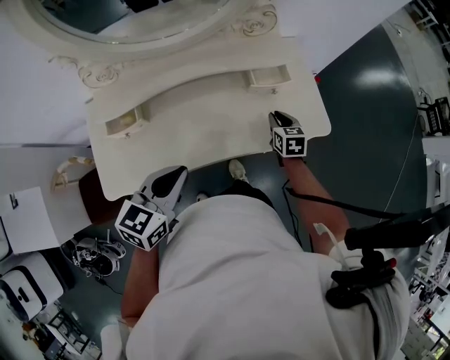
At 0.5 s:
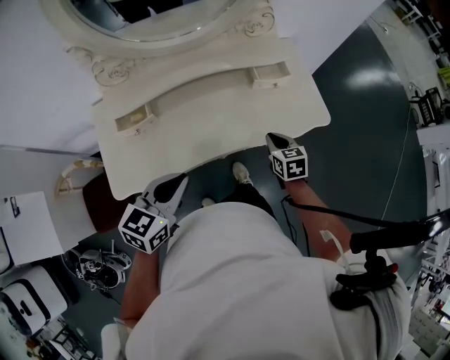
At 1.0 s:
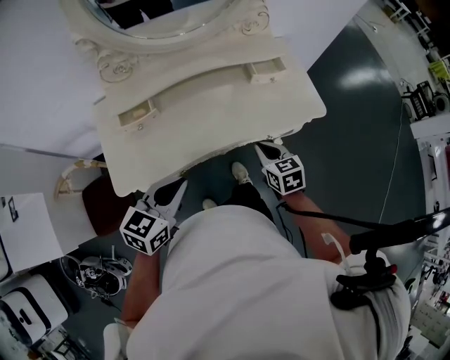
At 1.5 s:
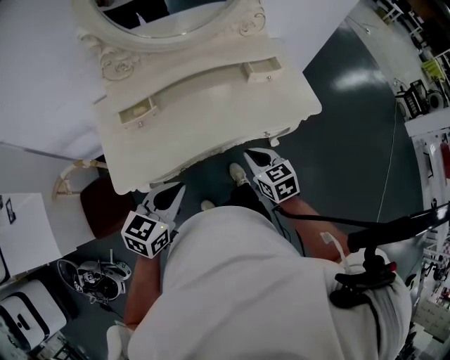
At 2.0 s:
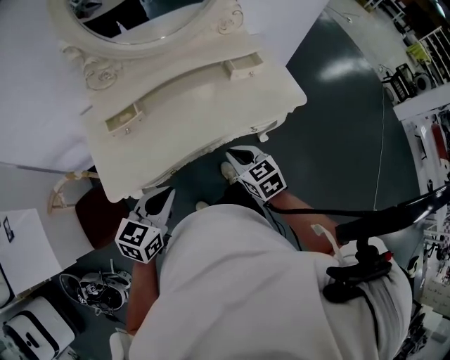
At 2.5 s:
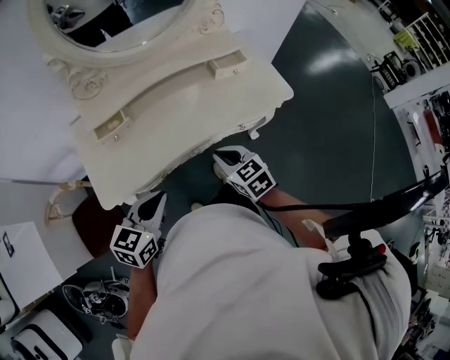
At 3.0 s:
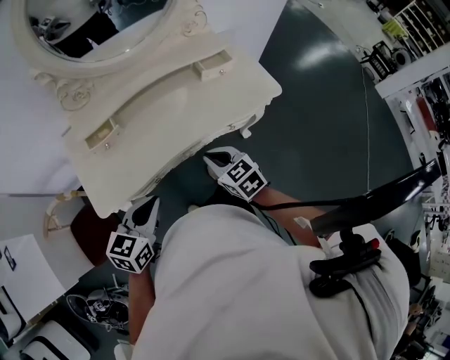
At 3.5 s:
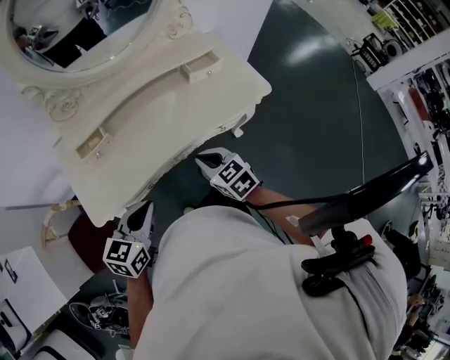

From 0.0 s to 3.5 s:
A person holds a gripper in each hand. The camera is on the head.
From 0.0 s to 2.0 s: The right gripper moves backward and to the left, roughly 30 cm. The left gripper heads backward and to the left, covering about 20 cm.
From 2.0 s to 3.5 s: The grippers move only a little.

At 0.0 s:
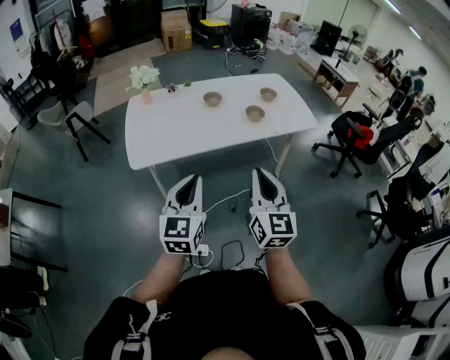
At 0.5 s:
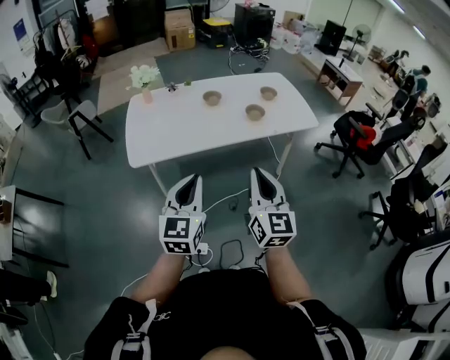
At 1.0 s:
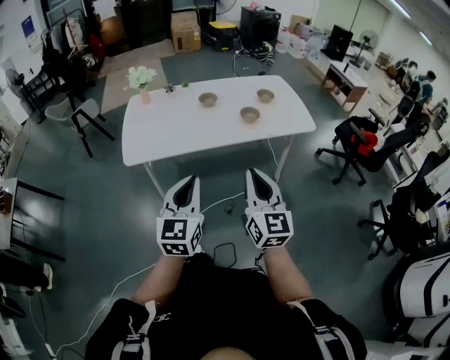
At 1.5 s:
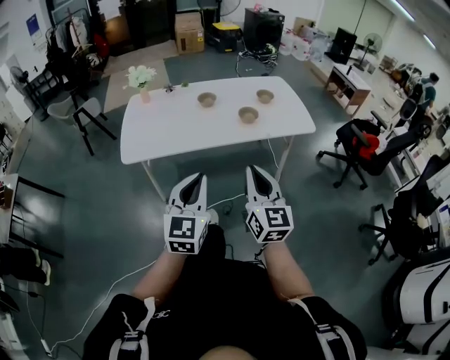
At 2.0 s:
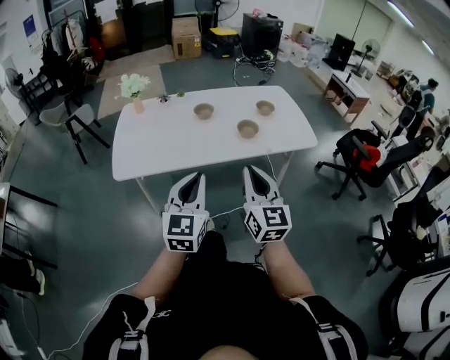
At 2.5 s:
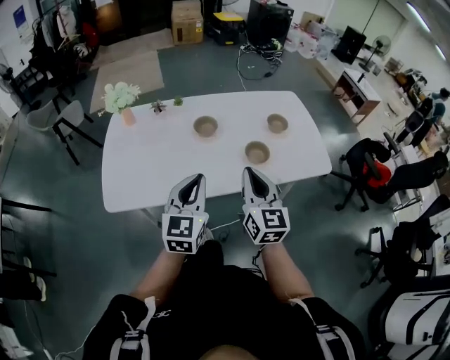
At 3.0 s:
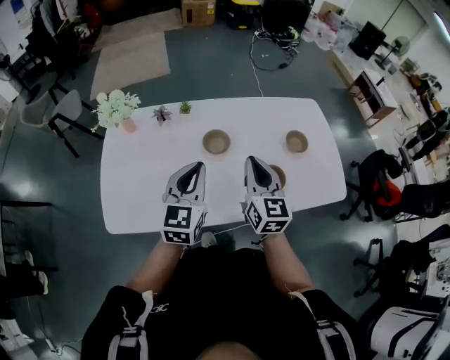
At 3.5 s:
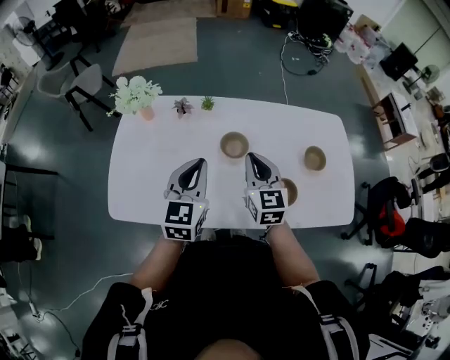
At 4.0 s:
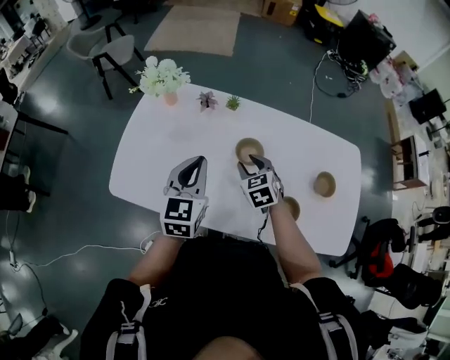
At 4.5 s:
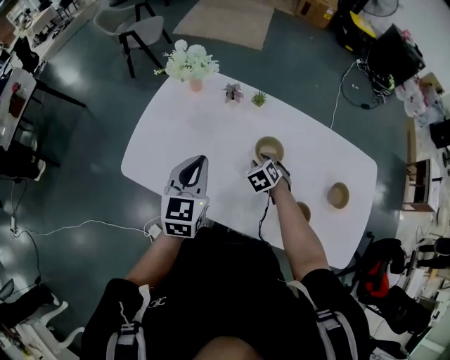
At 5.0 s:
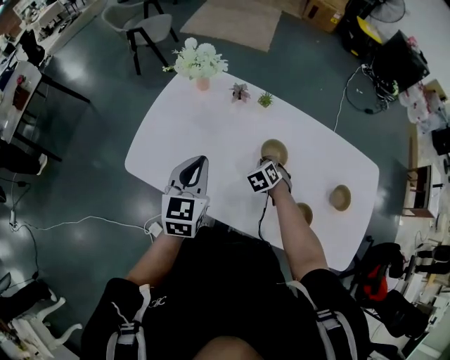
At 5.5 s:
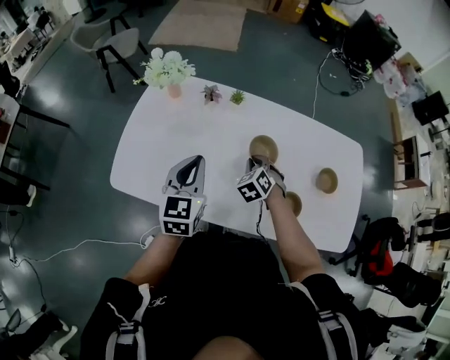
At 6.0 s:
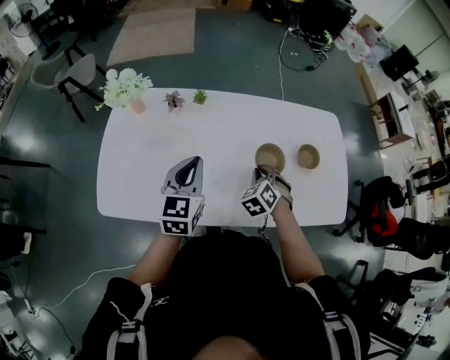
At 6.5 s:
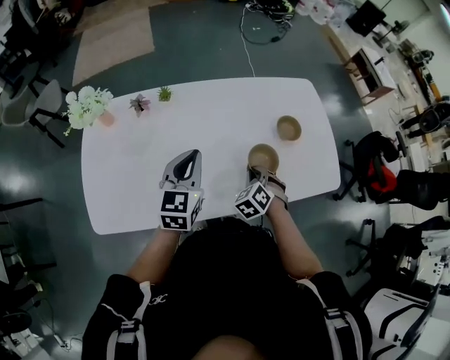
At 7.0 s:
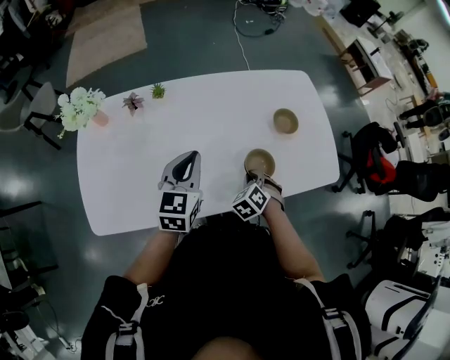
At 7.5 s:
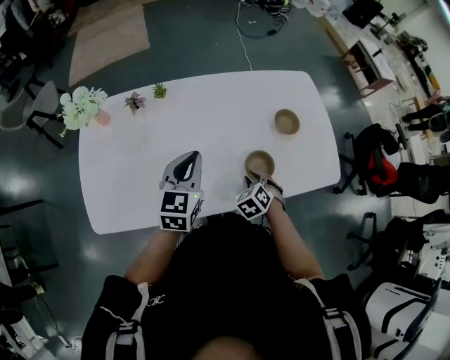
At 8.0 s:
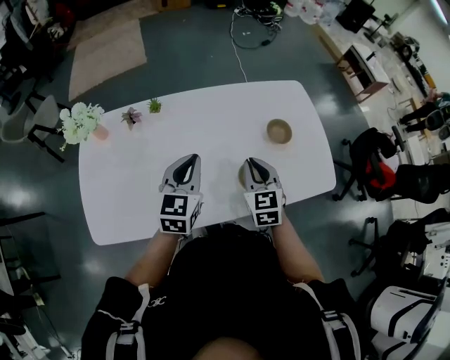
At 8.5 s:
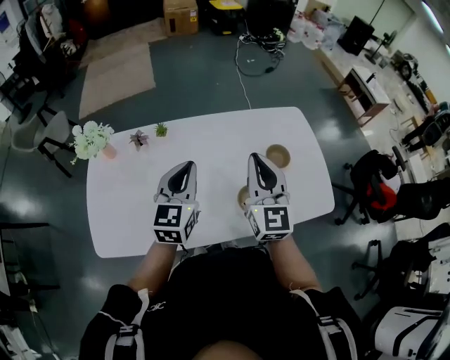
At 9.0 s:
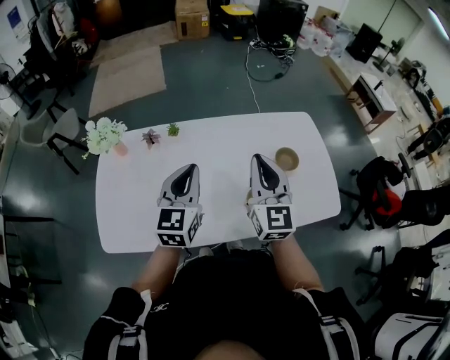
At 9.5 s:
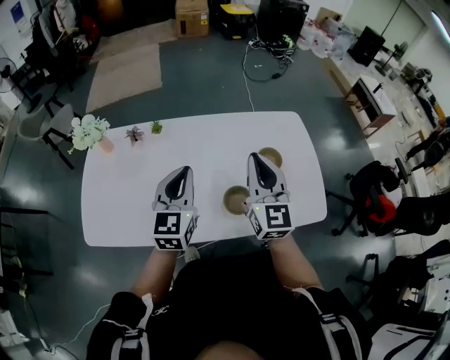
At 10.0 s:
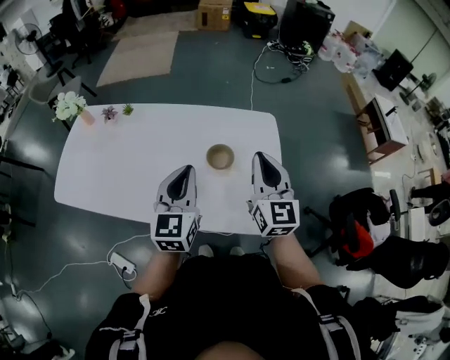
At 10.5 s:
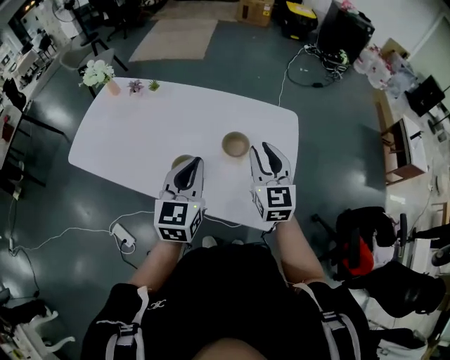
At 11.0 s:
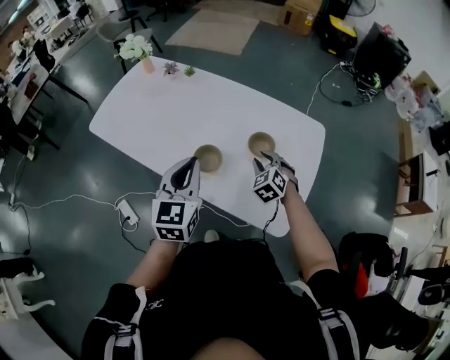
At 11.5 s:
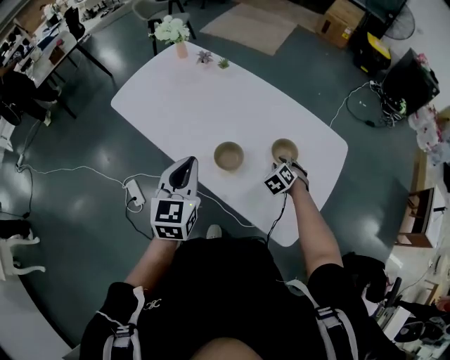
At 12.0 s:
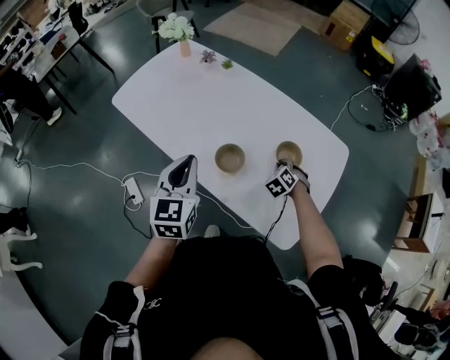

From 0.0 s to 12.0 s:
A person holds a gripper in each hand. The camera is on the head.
From 0.0 s to 2.0 s: The right gripper heads forward and to the right, covering about 15 cm. Meanwhile the left gripper moves to the right and forward, approximately 20 cm.
From 2.0 s to 4.0 s: Both grippers are carried about 60 cm. The right gripper points its fingers roughly 50 degrees further downward, and opens up. Meanwhile the left gripper changes its angle by some 30 degrees.
From 4.0 s to 6.0 s: The right gripper goes downward and returns, about 10 cm each way, rotates roughly 30 degrees, and closes its fingers, while the left gripper moves roughly 5 cm.
From 6.0 s to 8.0 s: The left gripper moves to the right and forward, about 10 cm. Meanwhile the right gripper travels upward and to the right by some 10 cm, and changes its angle by approximately 40 degrees.
From 8.0 s to 10.0 s: The grippers both shift to the right by about 40 cm. The left gripper changes its angle by approximately 30 degrees. Meanwhile the right gripper swivels roughly 30 degrees.
From 10.0 s to 12.0 s: The right gripper heads downward, covering some 30 cm, points its fingers approximately 50 degrees further downward, and opens, then closes again. Meanwhile the left gripper heads to the left and backward, covering some 20 cm, and swivels some 30 degrees.

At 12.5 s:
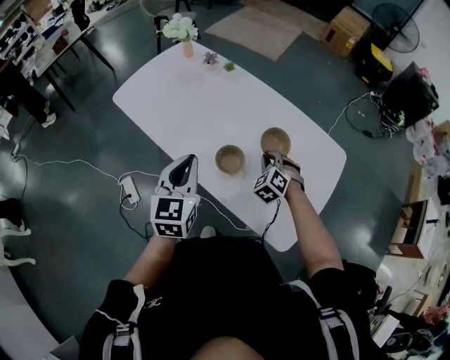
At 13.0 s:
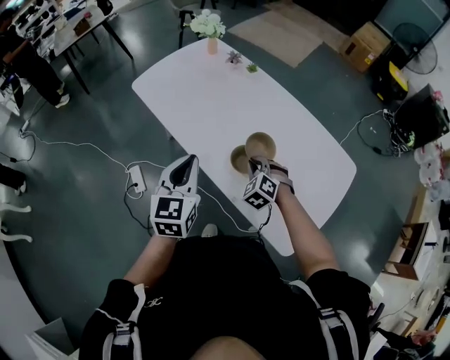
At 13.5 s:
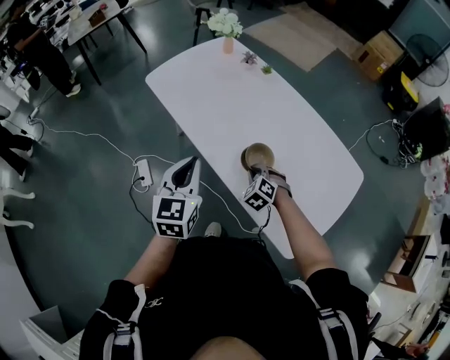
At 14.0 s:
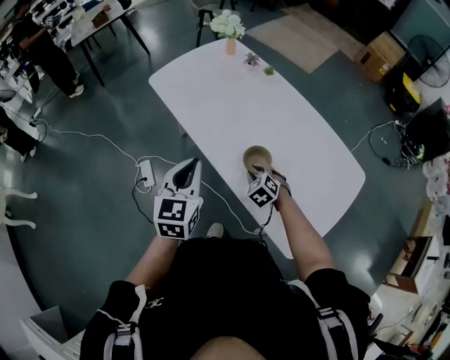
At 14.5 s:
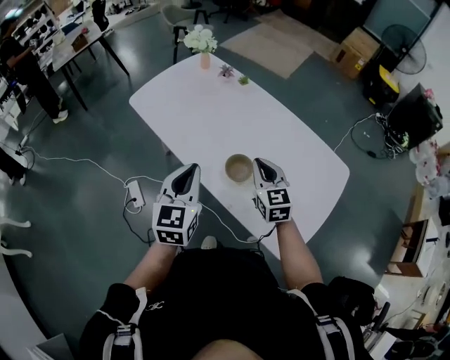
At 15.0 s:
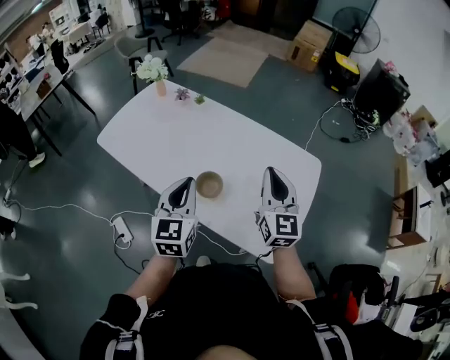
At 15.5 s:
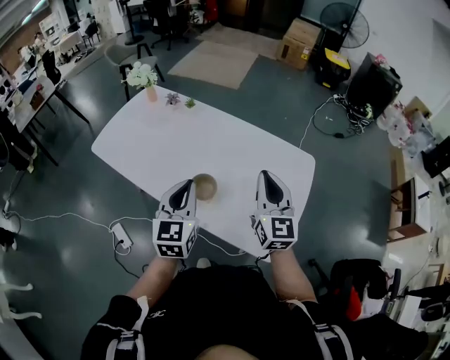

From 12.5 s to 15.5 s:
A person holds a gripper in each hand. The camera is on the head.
From 12.5 s to 14.0 s: The left gripper heads to the left, covering roughly 10 cm. The right gripper travels to the left and downward by approximately 15 cm, and turns by approximately 20 degrees.
From 14.0 s to 15.5 s: The left gripper shifts approximately 15 cm to the right, and swivels approximately 20 degrees. The right gripper goes some 35 cm upward and to the right, angles its fingers upward, by roughly 60 degrees, and closes up.

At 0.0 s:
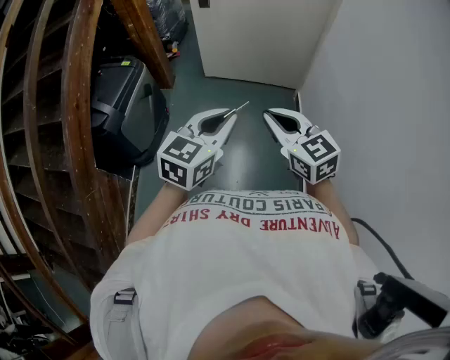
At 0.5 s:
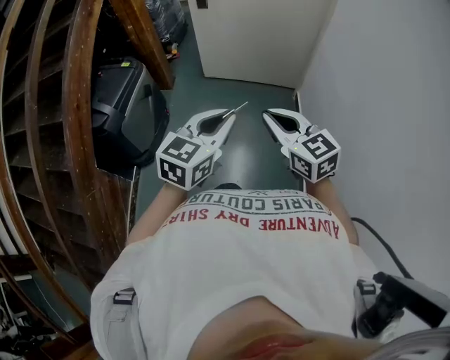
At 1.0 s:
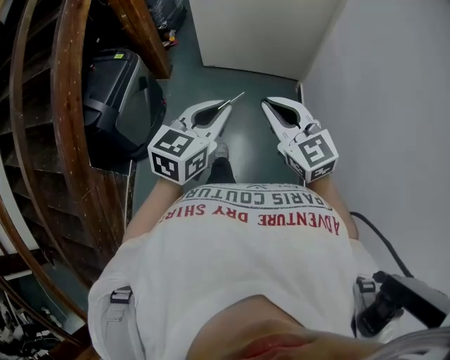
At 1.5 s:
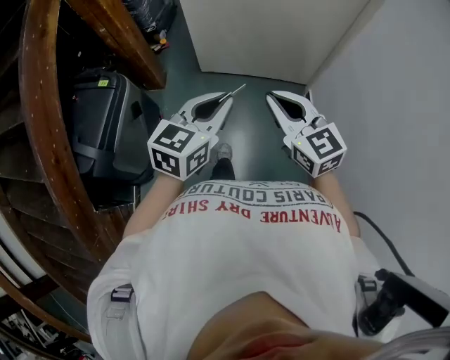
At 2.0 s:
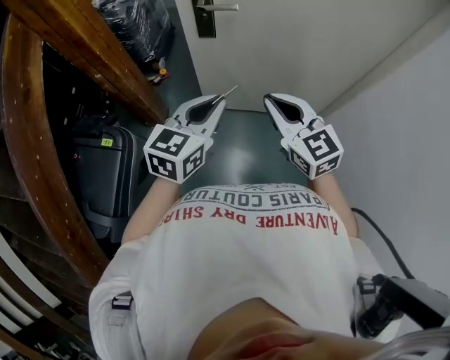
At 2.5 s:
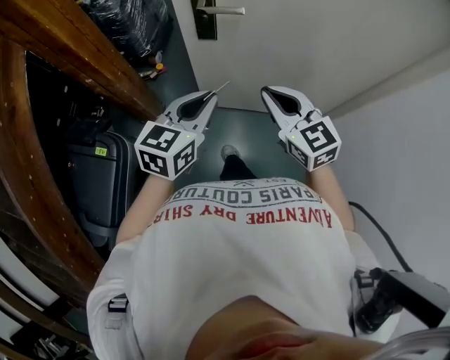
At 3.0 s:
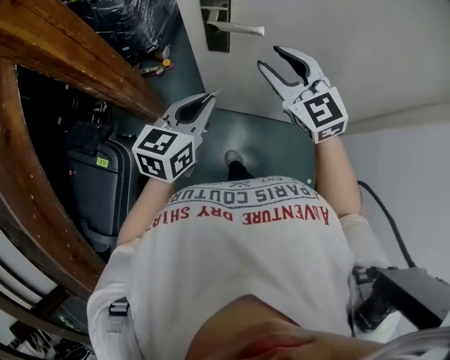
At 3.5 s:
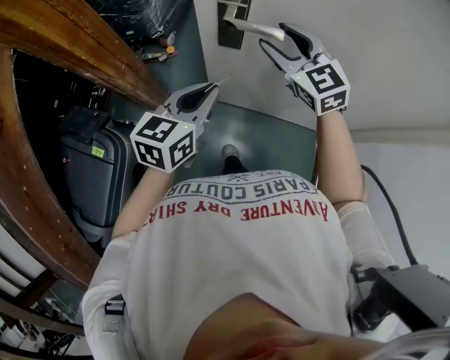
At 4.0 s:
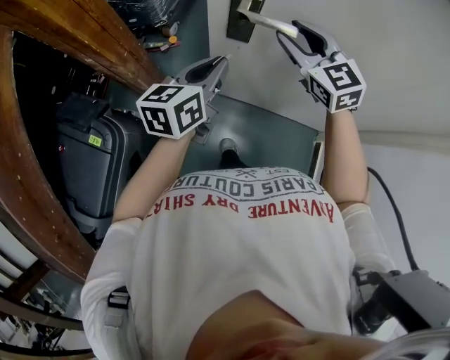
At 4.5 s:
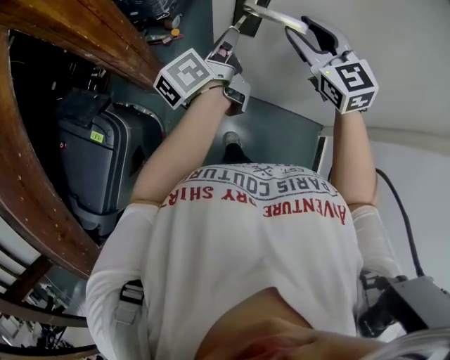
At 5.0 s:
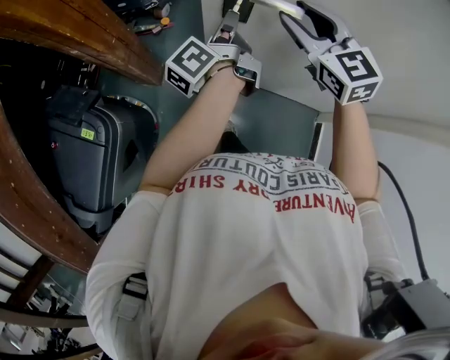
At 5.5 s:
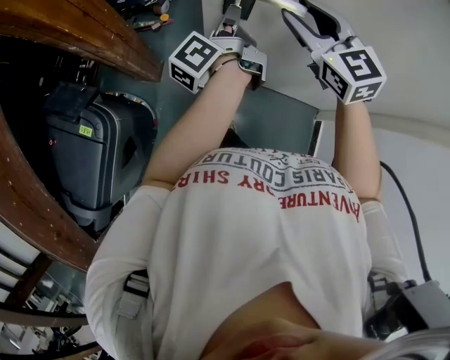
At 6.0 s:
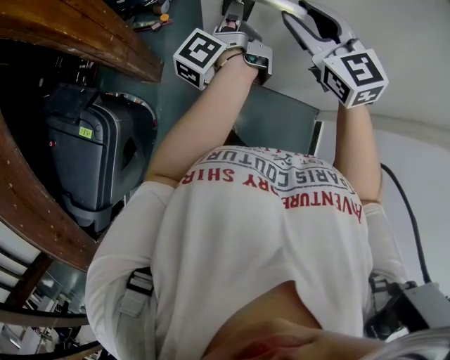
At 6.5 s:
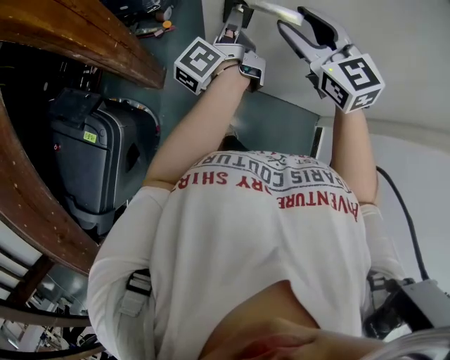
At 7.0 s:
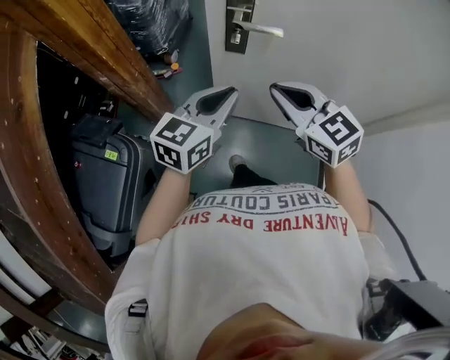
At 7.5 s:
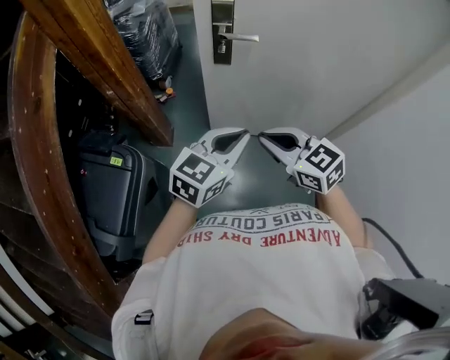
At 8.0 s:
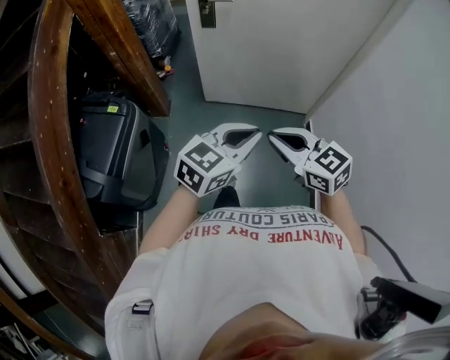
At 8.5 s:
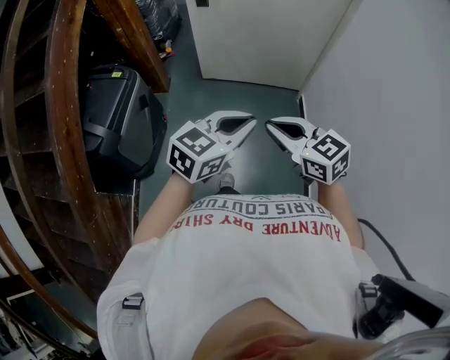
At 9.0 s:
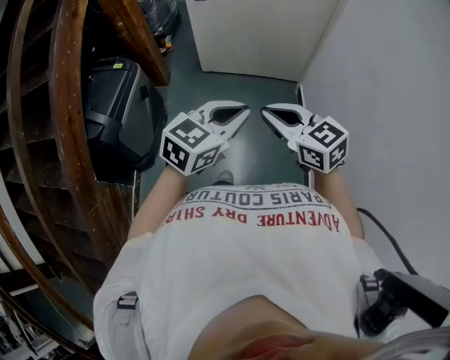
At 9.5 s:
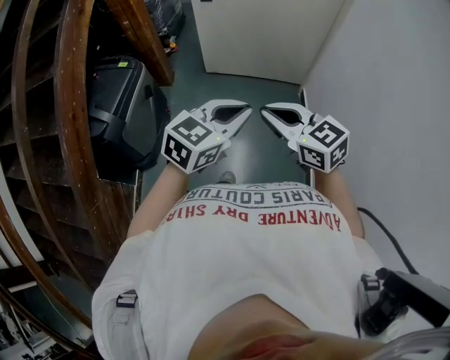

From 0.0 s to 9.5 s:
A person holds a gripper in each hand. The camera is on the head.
From 0.0 s to 2.0 s: The pair of grippers is taken forward, roughly 60 cm.
From 2.0 s to 4.0 s: Both grippers travel together forward, some 35 cm. The left gripper rotates approximately 30 degrees; the right gripper opens its fingers.
From 4.0 s to 5.5 s: The left gripper travels forward by approximately 10 cm, and twists roughly 60 degrees counterclockwise, seen from behind.
From 5.5 s to 7.5 s: The grippers both shift backward by approximately 40 cm. The right gripper closes up, while the left gripper rolls clockwise, seen from behind, by roughly 80 degrees.
From 7.5 s to 9.5 s: The pair of grippers is taken backward, about 50 cm.
